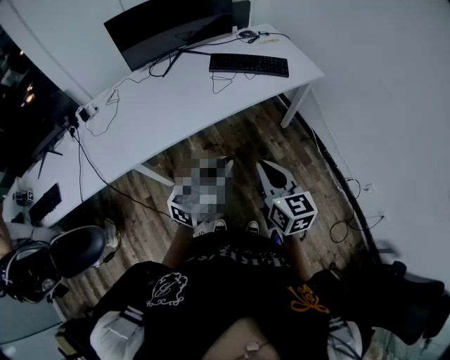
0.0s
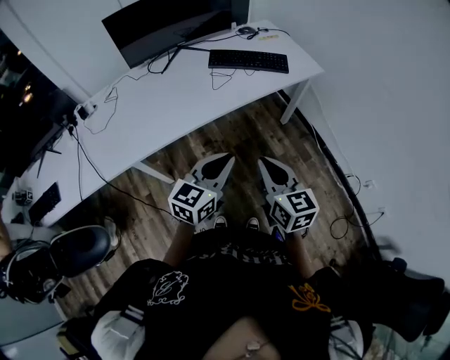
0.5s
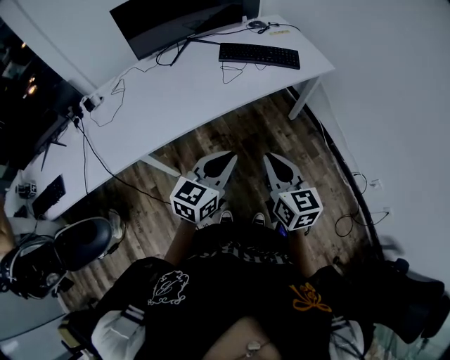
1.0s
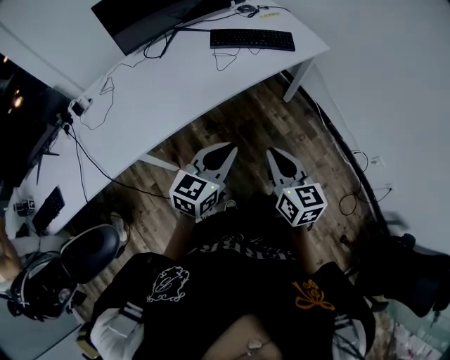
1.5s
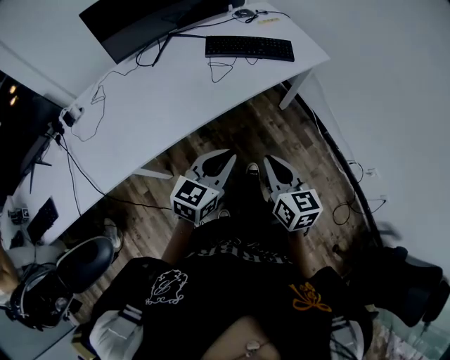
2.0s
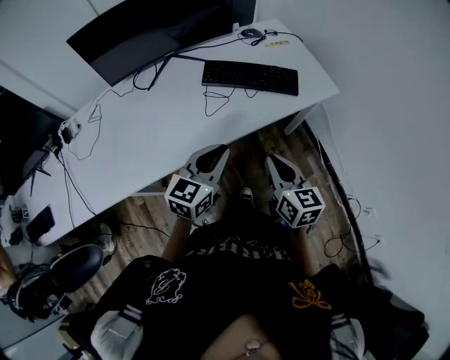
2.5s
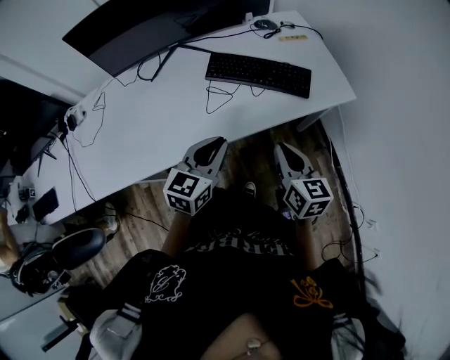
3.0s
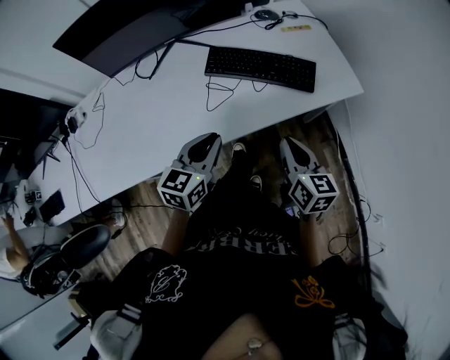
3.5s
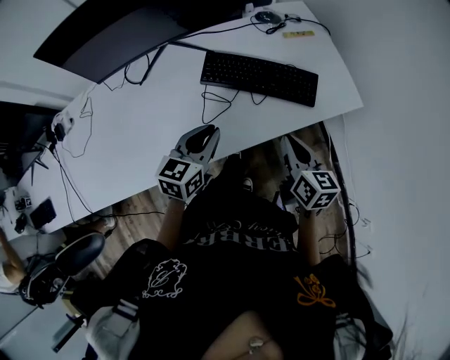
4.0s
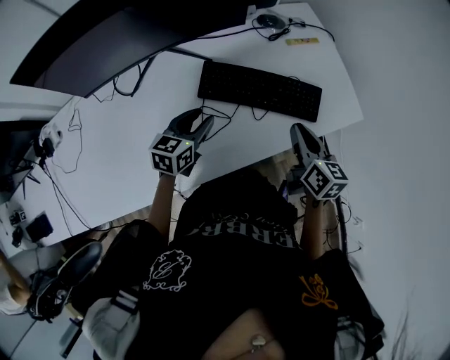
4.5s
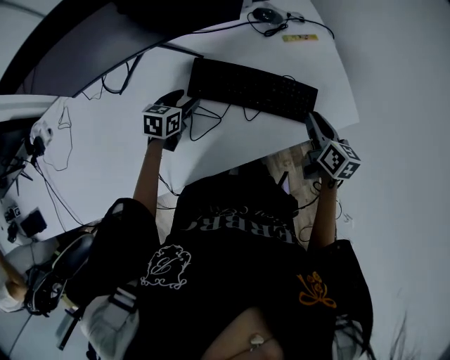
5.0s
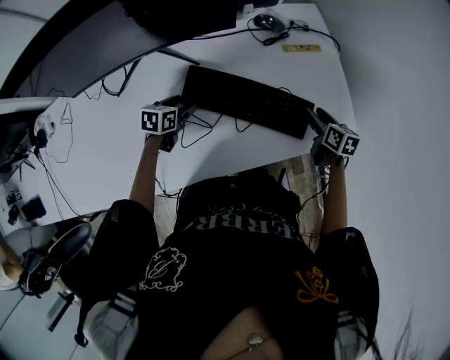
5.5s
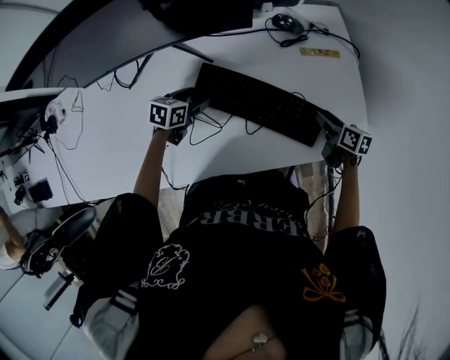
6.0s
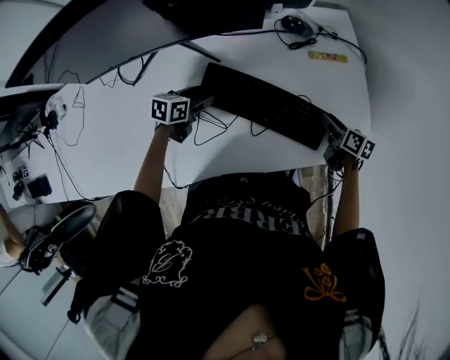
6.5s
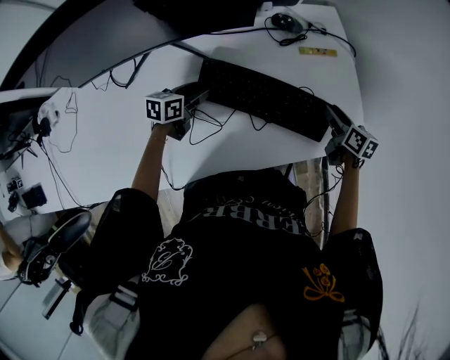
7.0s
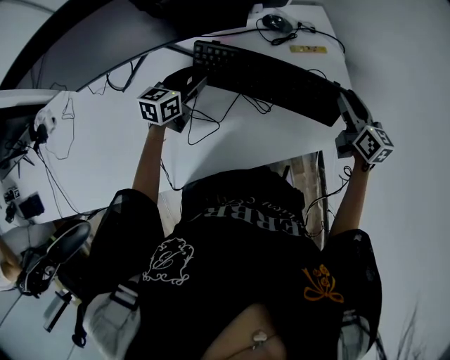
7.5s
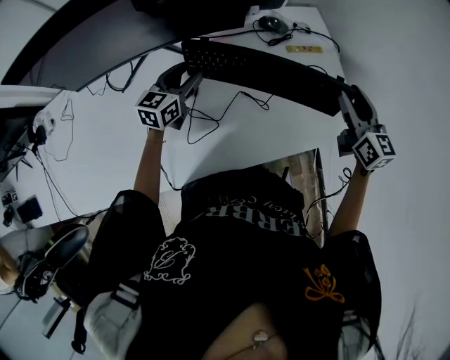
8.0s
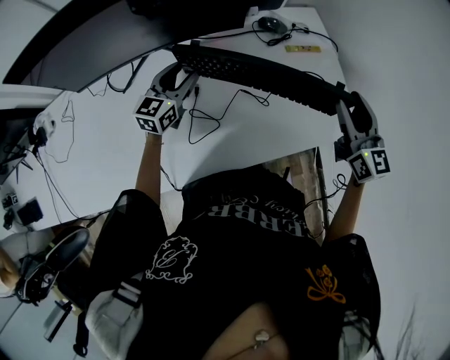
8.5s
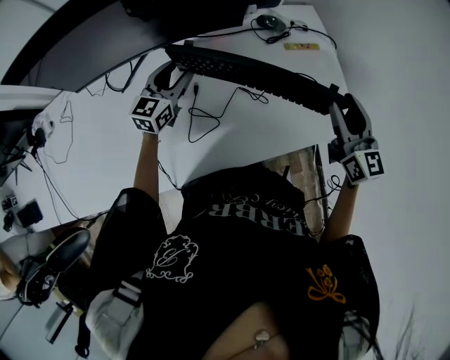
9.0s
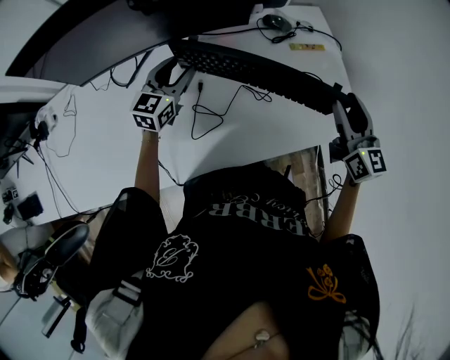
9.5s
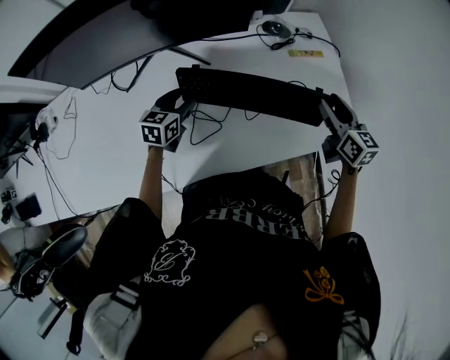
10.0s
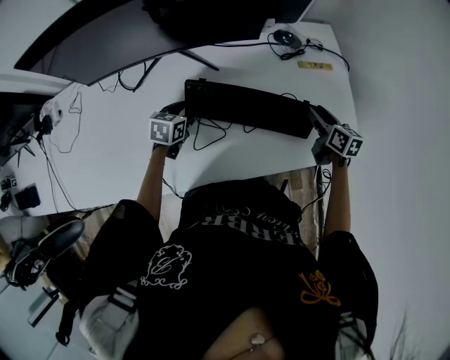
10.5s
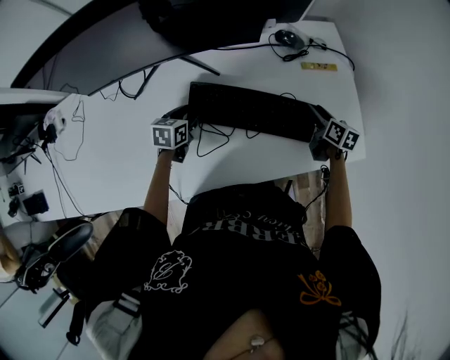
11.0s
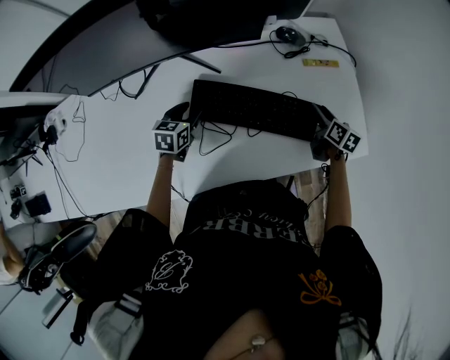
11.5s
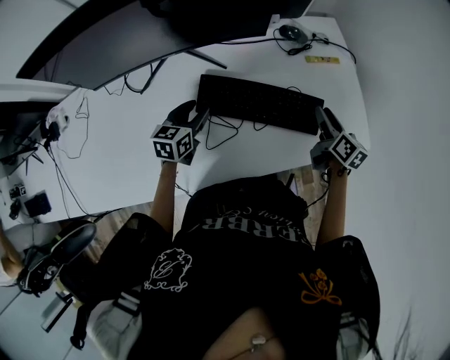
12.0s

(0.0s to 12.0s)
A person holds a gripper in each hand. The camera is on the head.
0.0s - 2.0s: The left gripper moves forward, approximately 5 cm. Meanwhile the right gripper goes some 10 cm forward and downward.
2.0s - 4.0s: Both grippers move forward, about 35 cm. The left gripper swivels about 20 degrees.
4.0s - 6.0s: The left gripper heads forward and downward, covering approximately 30 cm, swivels about 30 degrees, and opens up. Meanwhile the right gripper is displaced forward, downward and to the right by approximately 35 cm, changes its angle by about 30 degrees, and opens its fingers.
6.0s - 8.0s: The right gripper heads upward, covering some 25 cm, and rotates roughly 40 degrees. Meanwhile the left gripper goes roughly 15 cm upward, and rotates some 30 degrees.
8.0s - 10.0s: The left gripper goes approximately 10 cm backward and downward; the right gripper is displaced downward by some 5 cm.
10.0s - 12.0s: The left gripper reaches about 5 cm downward, then returns, while the right gripper moves downward, some 5 cm, and rotates about 30 degrees.

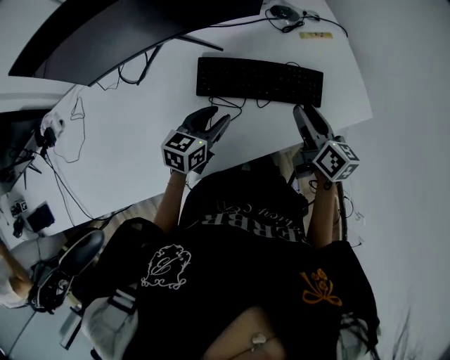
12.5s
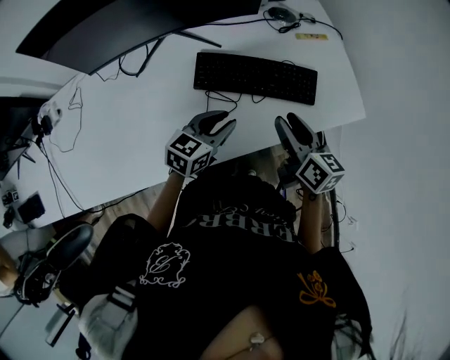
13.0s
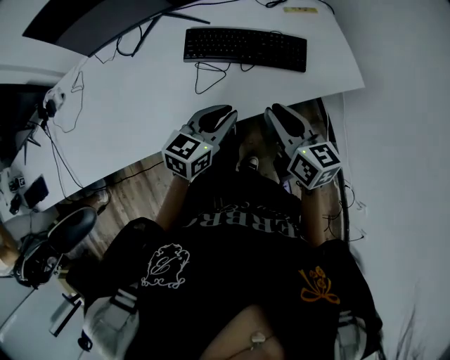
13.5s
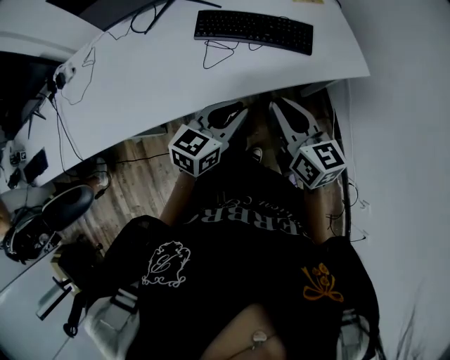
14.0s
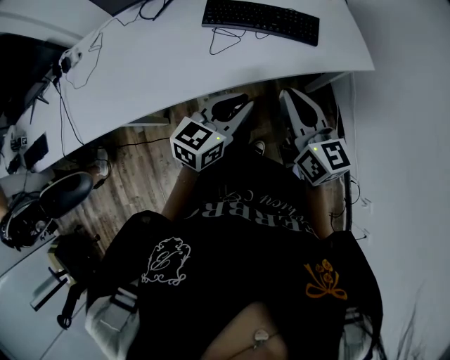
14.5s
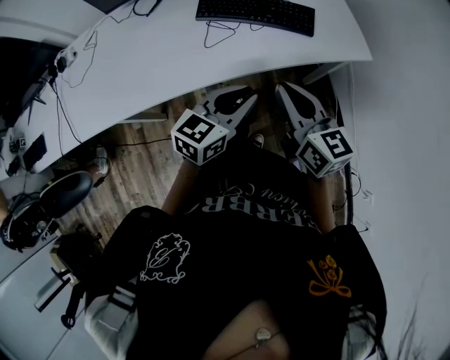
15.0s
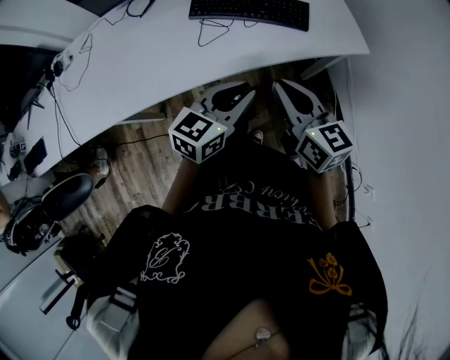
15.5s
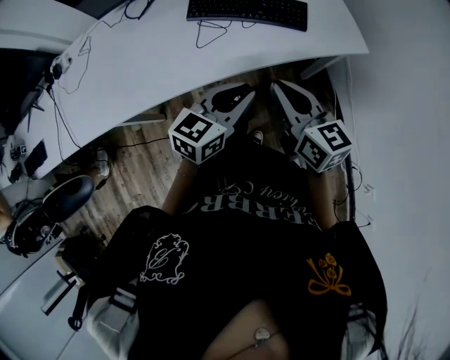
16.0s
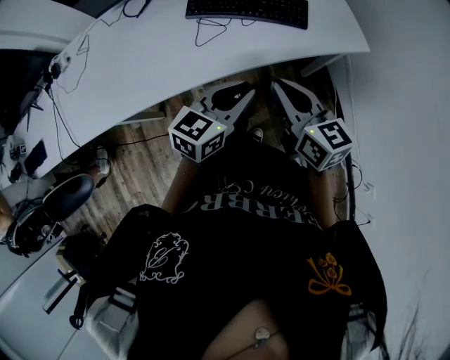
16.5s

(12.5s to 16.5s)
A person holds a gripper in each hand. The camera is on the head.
12.5s - 14.5s: The right gripper moves backward, some 25 cm, rotates about 30 degrees, and closes; the left gripper moves backward and to the right, about 30 cm, and closes.
14.5s - 16.5s: The grippers make only small movements.

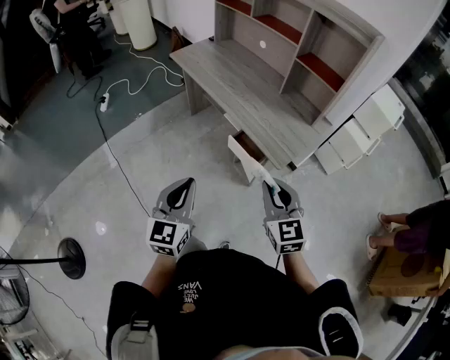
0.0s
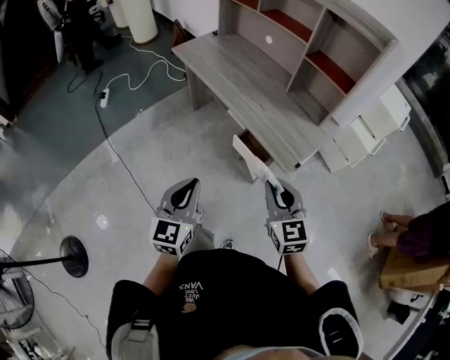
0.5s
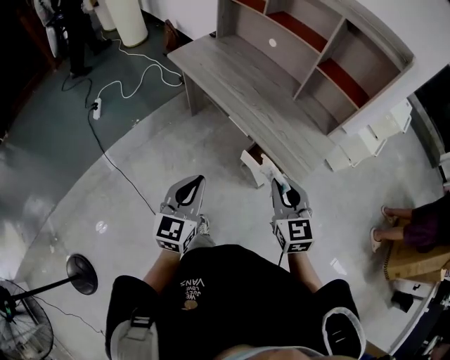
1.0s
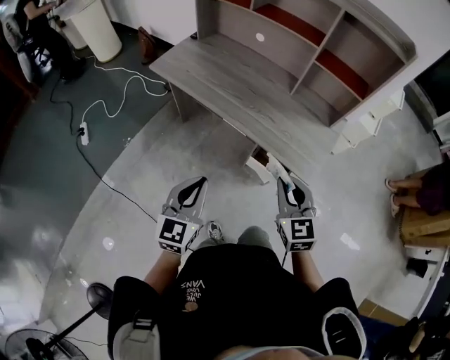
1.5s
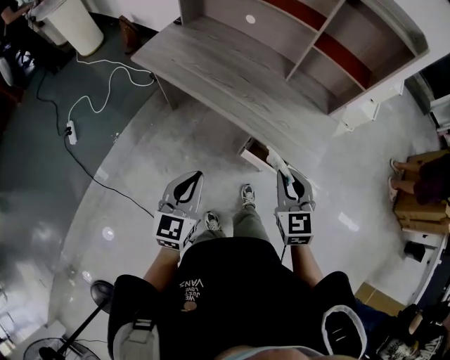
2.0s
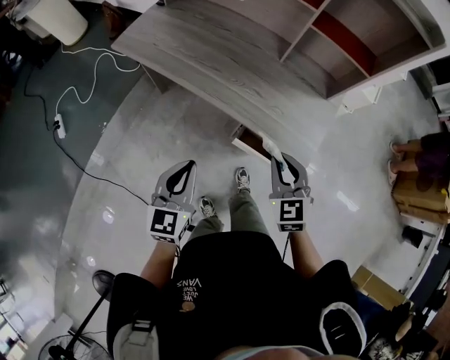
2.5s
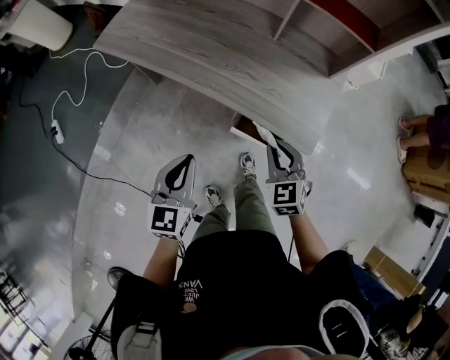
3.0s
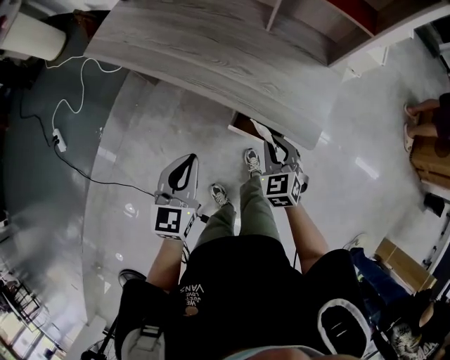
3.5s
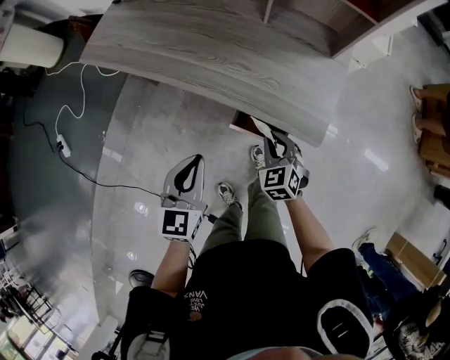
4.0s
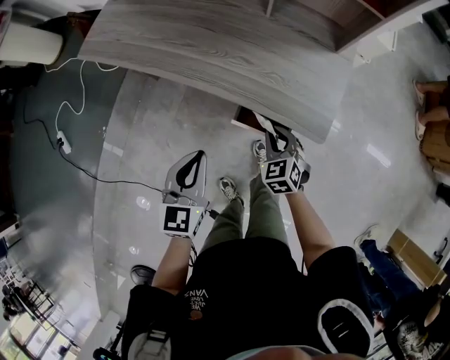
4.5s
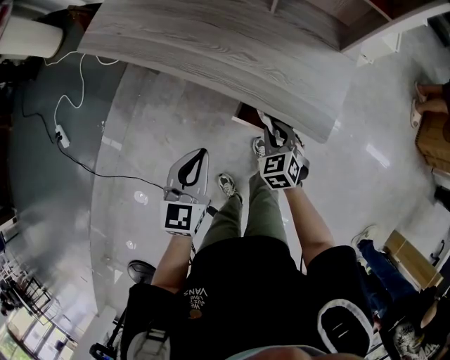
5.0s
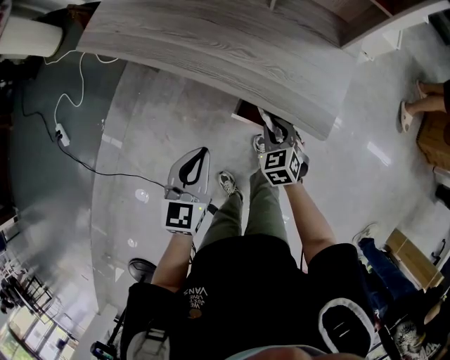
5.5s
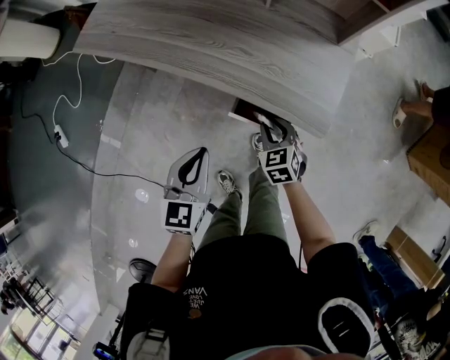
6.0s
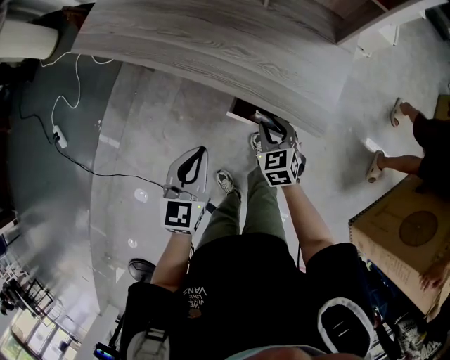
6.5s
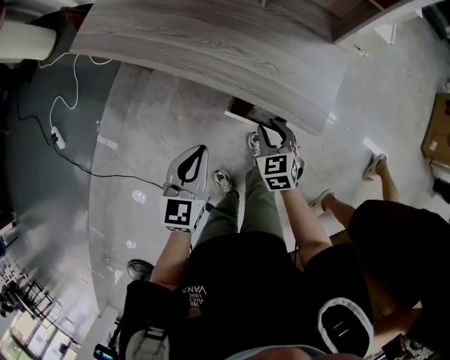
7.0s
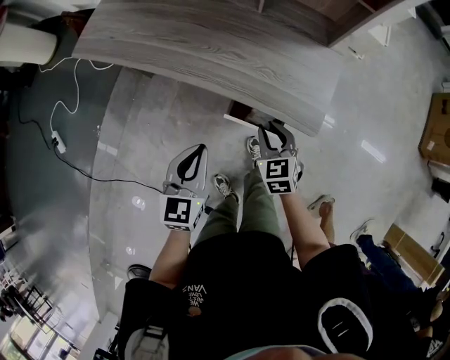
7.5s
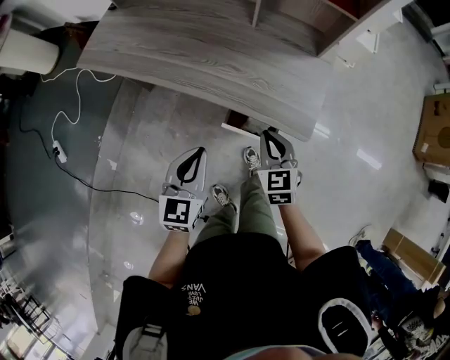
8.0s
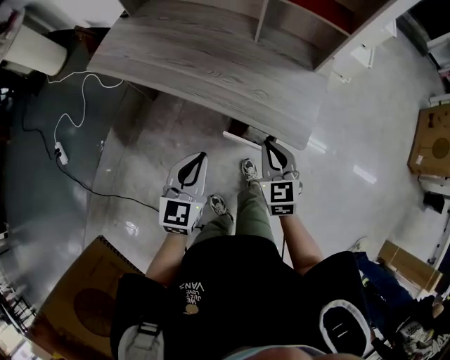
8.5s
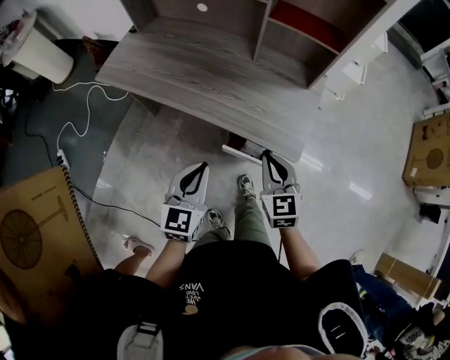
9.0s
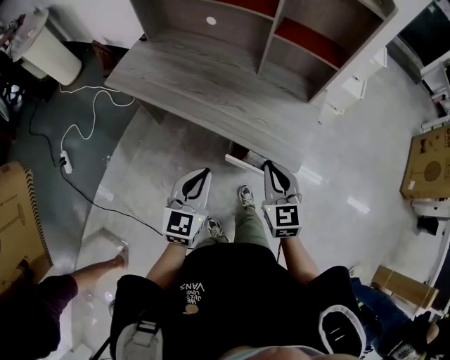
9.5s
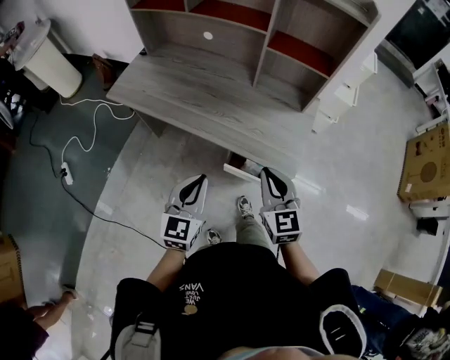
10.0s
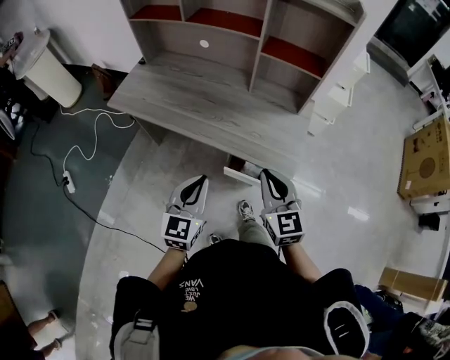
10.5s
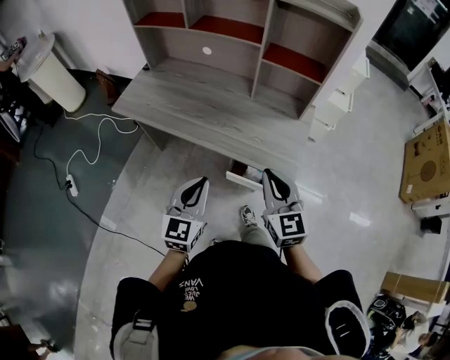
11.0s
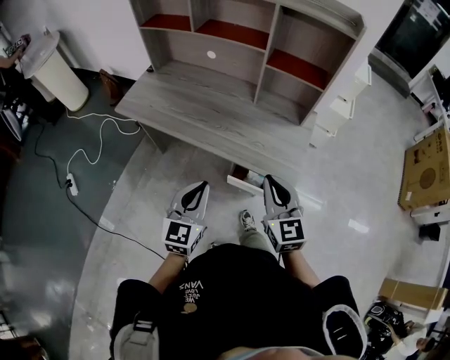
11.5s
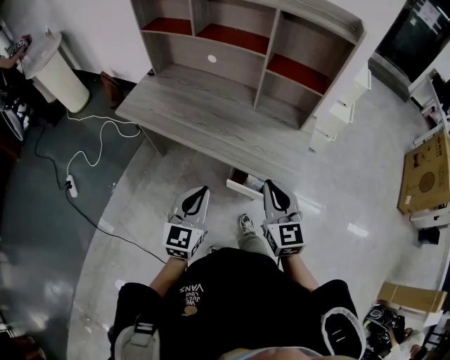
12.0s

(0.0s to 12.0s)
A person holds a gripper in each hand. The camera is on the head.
0.0s - 2.0s: The two grippers go roughly 25 cm forward and to the left. The right gripper turns by roughly 20 degrees. The left gripper changes its angle by about 20 degrees.
2.0s - 4.0s: The left gripper travels downward, to the right and forward by about 15 cm. The right gripper is displaced downward by approximately 25 cm, and turns by roughly 20 degrees.
4.0s - 6.0s: The grippers stay close to where they were, moving slightly.
6.0s - 8.0s: The right gripper goes approximately 10 cm upward, and closes.
8.0s - 10.0s: The left gripper is displaced upward by about 10 cm. The right gripper shifts approximately 15 cm upward.
10.0s - 12.0s: The grippers move only a little.
